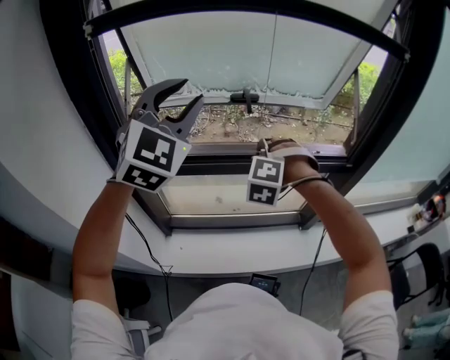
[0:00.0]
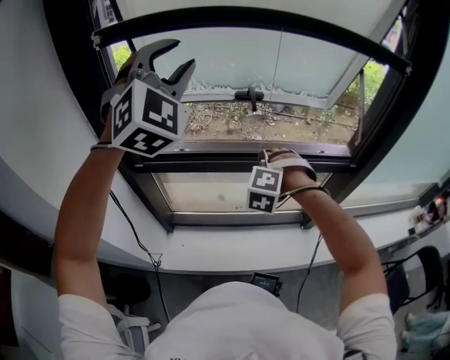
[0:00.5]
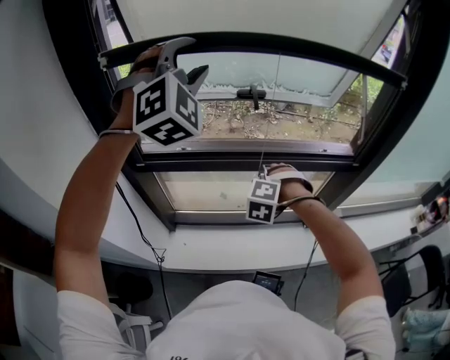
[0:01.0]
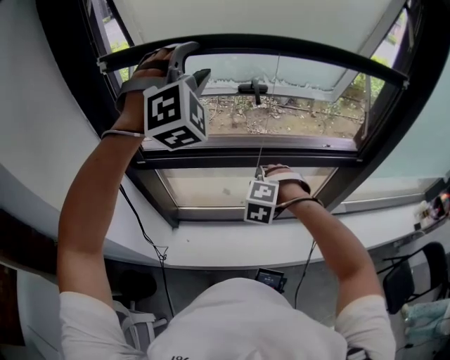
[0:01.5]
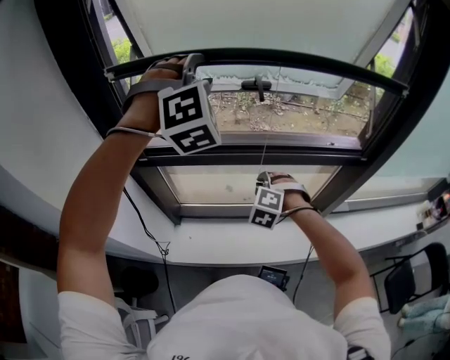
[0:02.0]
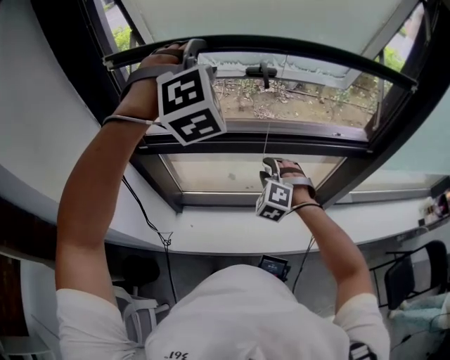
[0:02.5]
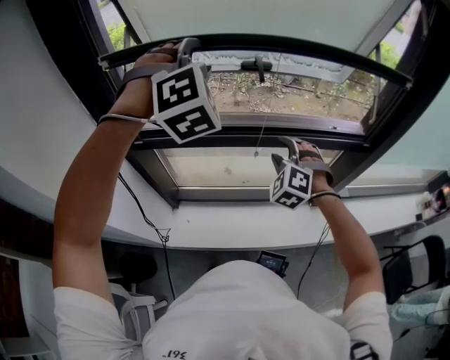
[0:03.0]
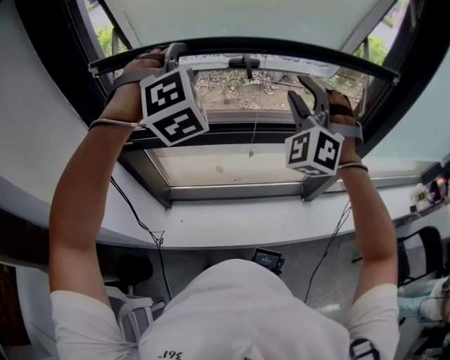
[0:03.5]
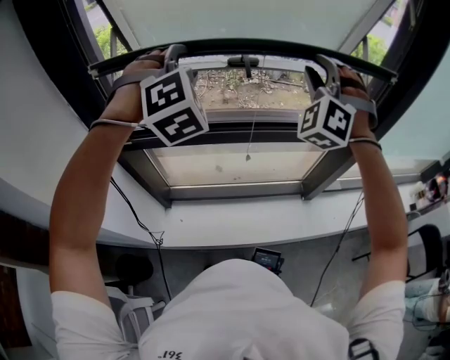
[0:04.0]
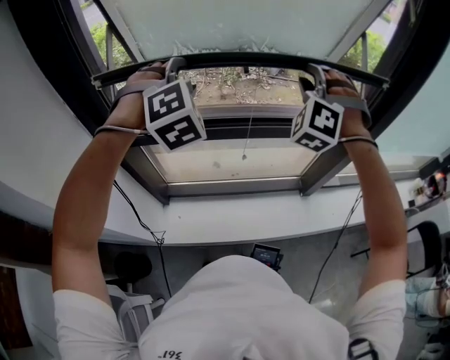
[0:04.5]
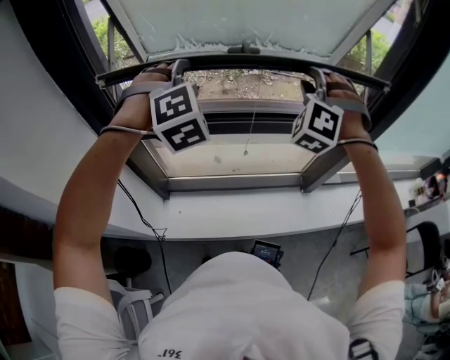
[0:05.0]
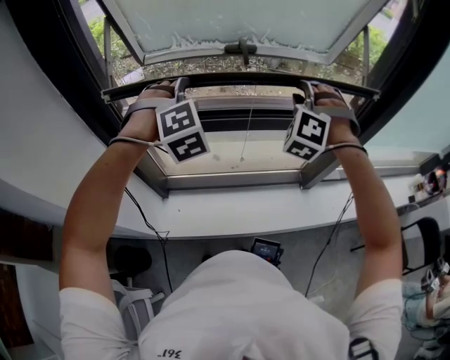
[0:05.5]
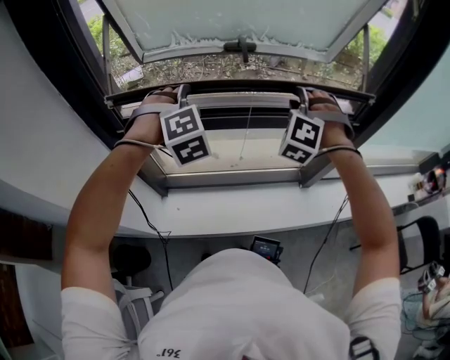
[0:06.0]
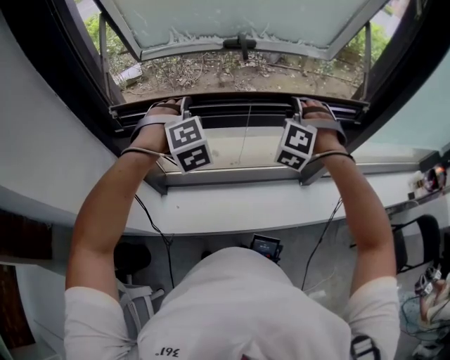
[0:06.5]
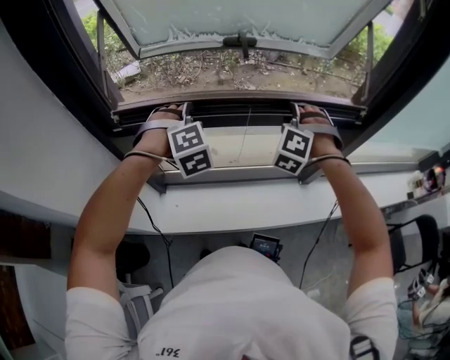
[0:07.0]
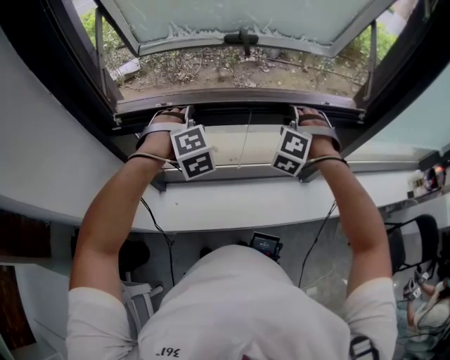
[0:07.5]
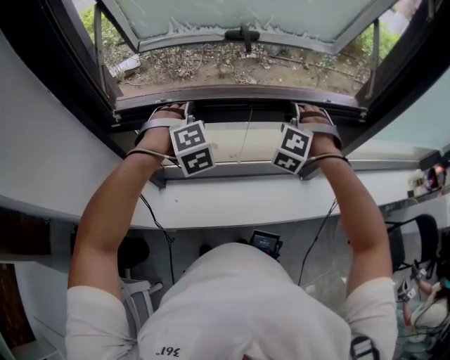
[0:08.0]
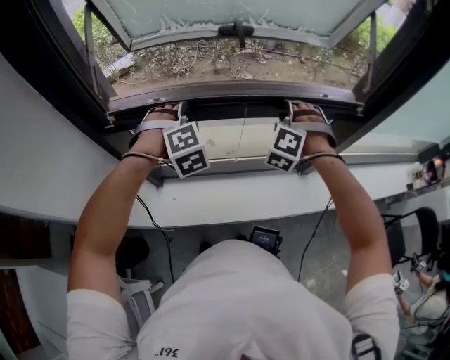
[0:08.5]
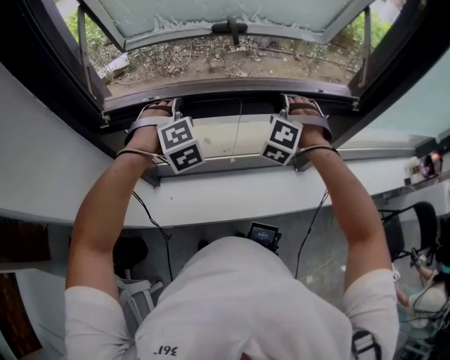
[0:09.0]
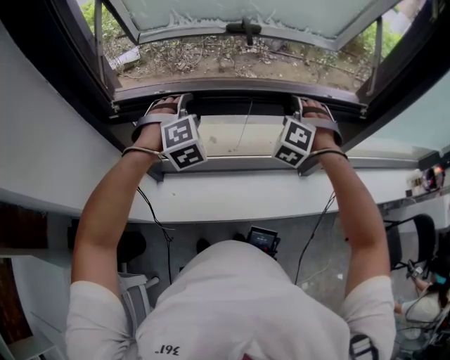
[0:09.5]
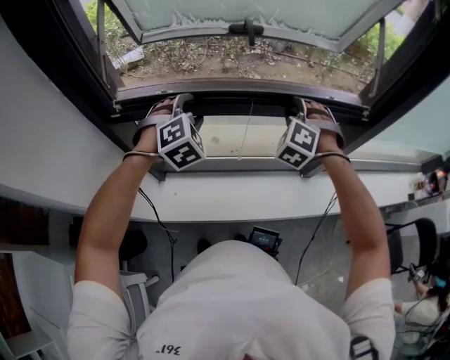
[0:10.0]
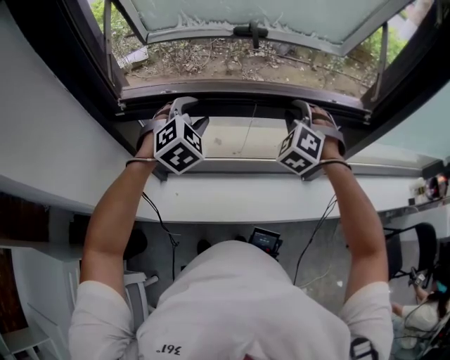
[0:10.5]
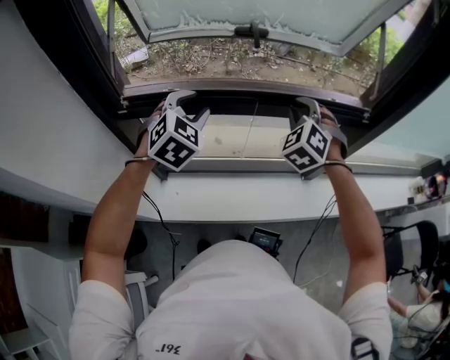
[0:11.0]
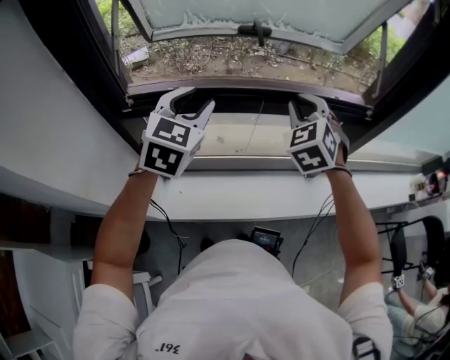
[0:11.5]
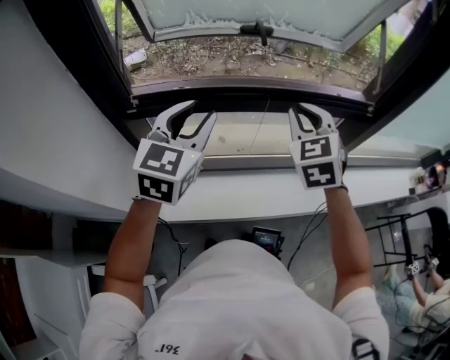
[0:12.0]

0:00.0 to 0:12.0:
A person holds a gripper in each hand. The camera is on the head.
0:00.0 to 0:02.0: The right gripper goes approximately 15 cm downward, while the left gripper travels forward by about 10 cm, and rotates about 40 degrees.
0:02.0 to 0:04.0: The right gripper goes roughly 35 cm upward, and points its fingers approximately 50 degrees further upward.
0:04.0 to 0:06.0: The grippers both shift downward by about 15 cm. The right gripper turns by about 30 degrees.
0:06.0 to 0:08.0: Both grippers travel together downward, some 10 cm.
0:08.0 to 0:10.0: There are only small adjustments of the grippers.
0:10.0 to 0:12.0: The right gripper goes roughly 15 cm backward, upward and to the left, and rotates around the line of its fingers by approximately 40 degrees, clockwise from behind. Meanwhile the left gripper is displaced upward and backward by approximately 15 cm, and twists approximately 40 degrees counterclockwise, seen from behind.

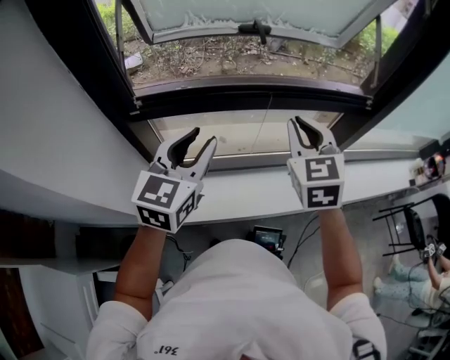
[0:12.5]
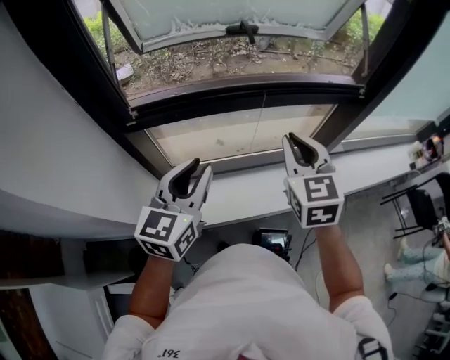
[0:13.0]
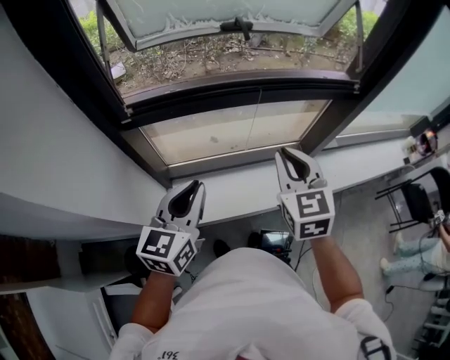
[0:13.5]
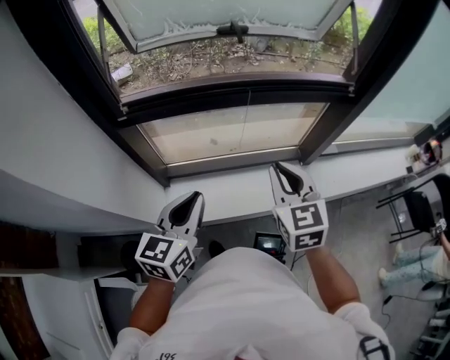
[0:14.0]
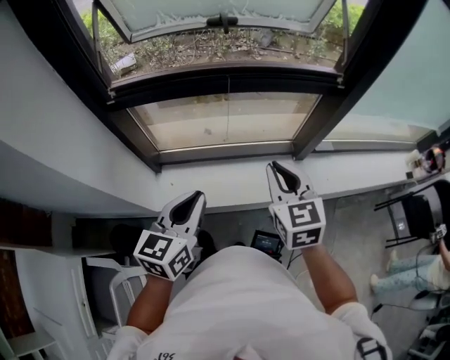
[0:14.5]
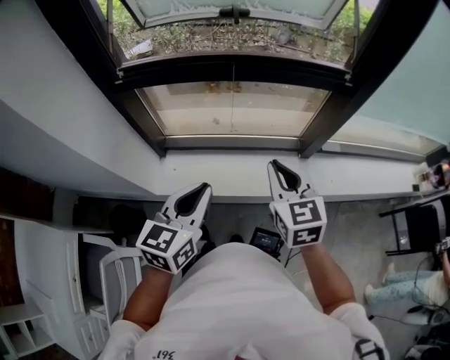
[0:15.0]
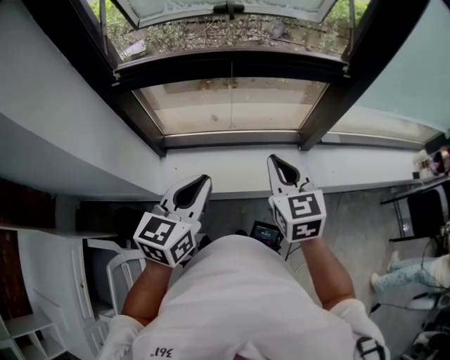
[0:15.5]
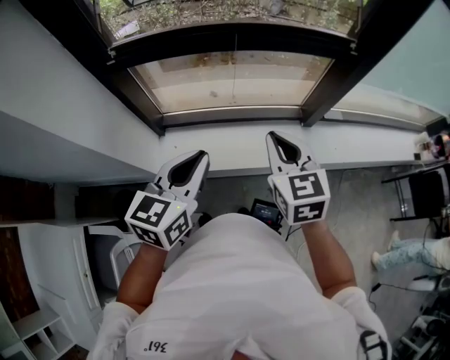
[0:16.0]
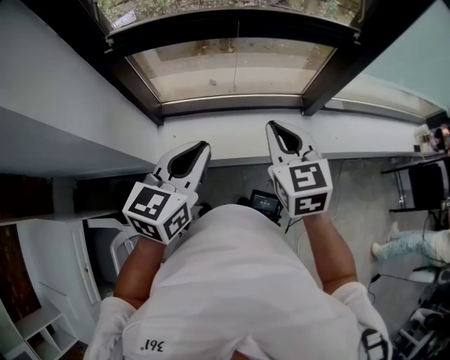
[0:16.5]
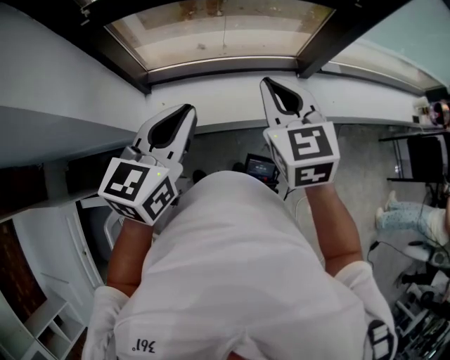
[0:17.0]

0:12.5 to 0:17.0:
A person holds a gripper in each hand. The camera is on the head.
0:12.5 to 0:14.5: The grippers both shift backward, to the right and downward by about 20 cm. The left gripper closes.
0:14.5 to 0:17.0: The right gripper ends up some 5 cm from where it was.

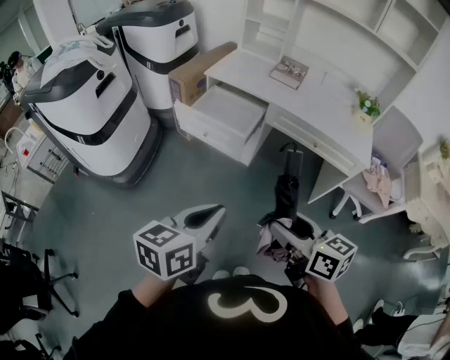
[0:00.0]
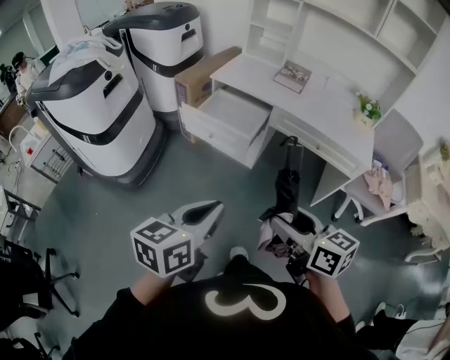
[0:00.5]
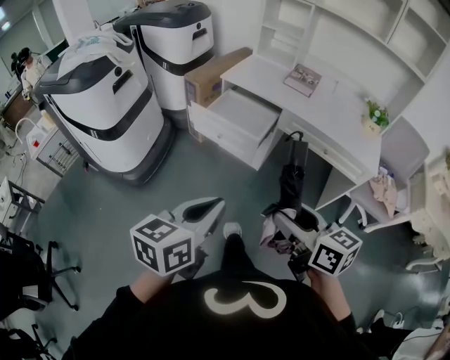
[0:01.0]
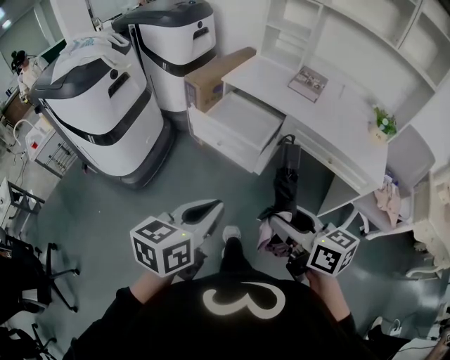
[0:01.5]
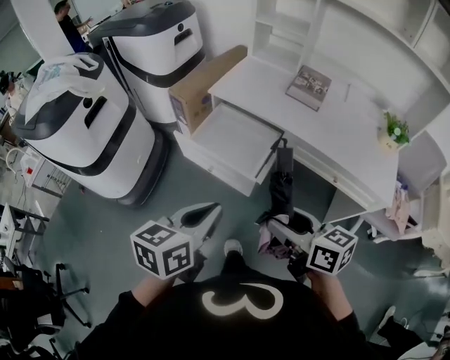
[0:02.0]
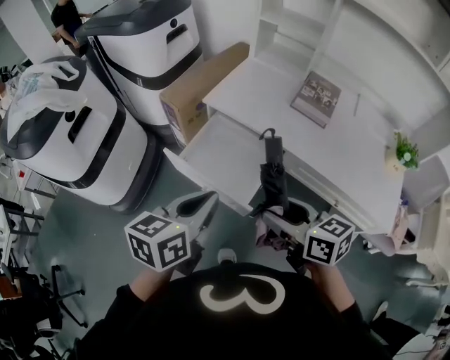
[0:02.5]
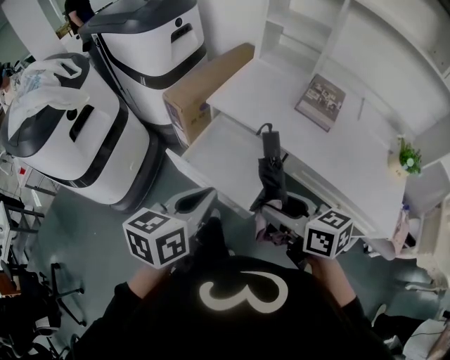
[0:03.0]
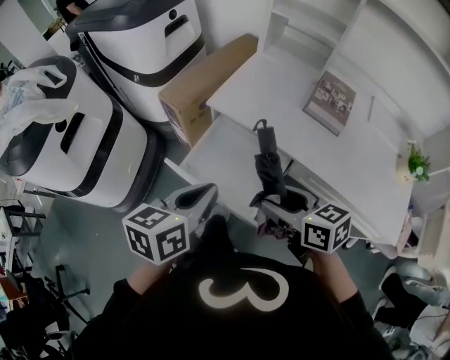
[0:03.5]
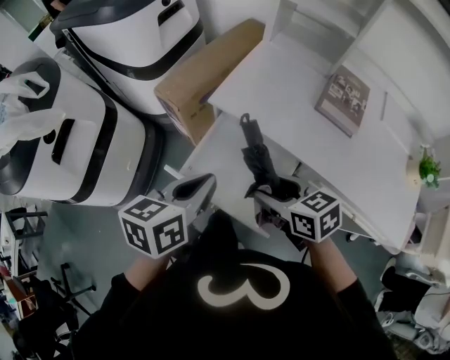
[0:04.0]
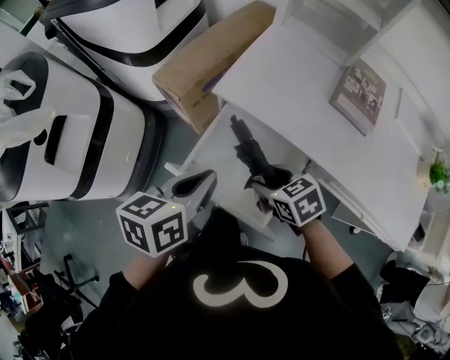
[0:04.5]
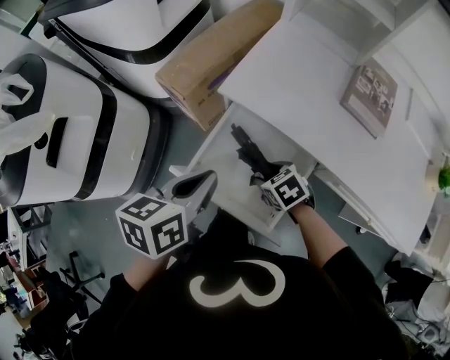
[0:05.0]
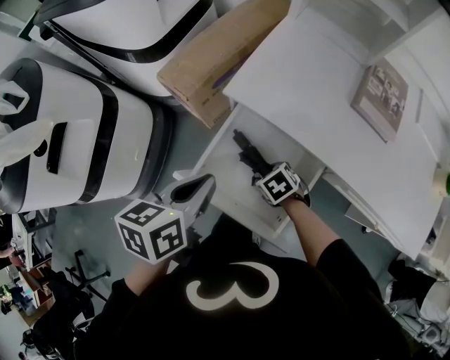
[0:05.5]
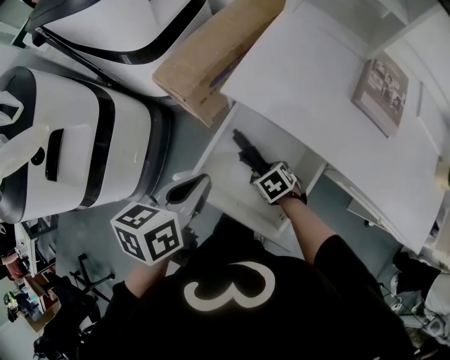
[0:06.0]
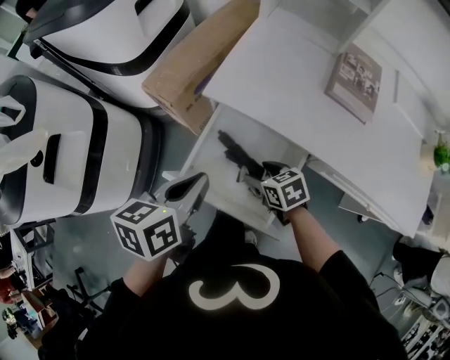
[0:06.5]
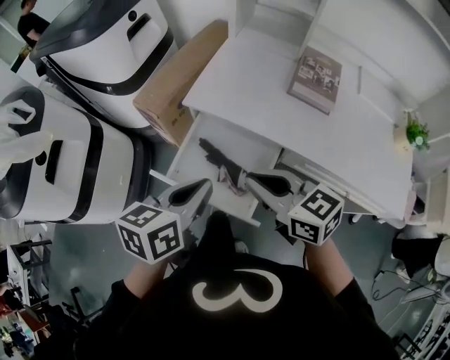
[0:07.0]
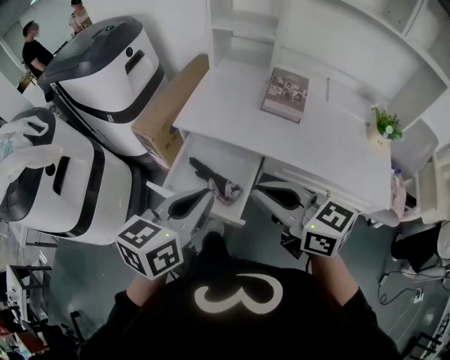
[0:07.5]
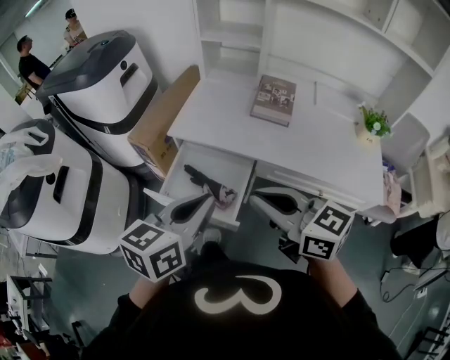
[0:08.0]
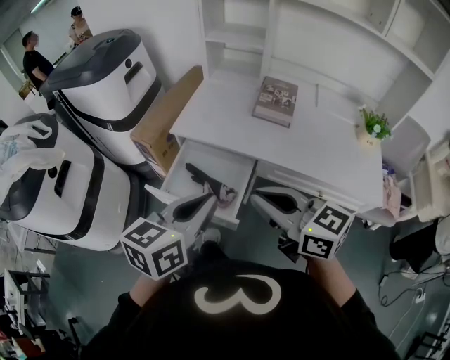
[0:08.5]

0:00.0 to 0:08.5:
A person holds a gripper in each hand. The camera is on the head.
0:00.0 to 0:02.0: Both grippers travel together forward, roughly 25 cm.
0:02.0 to 0:04.0: Both grippers move forward, some 35 cm. The right gripper turns by about 20 degrees.
0:04.0 to 0:06.5: The left gripper travels downward by some 5 cm, while the right gripper shifts about 20 cm downward.
0:06.5 to 0:08.5: The right gripper goes approximately 40 cm upward and backward, points its fingers about 40 degrees further upward, and closes. The left gripper moves backward, upward and to the right, some 30 cm, and turns by roughly 30 degrees.

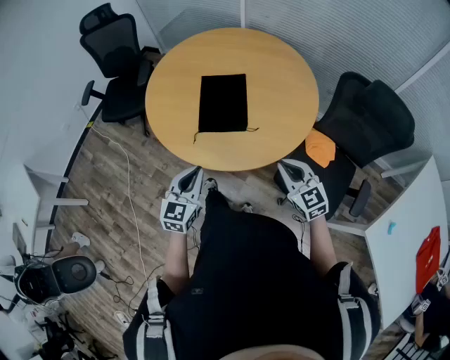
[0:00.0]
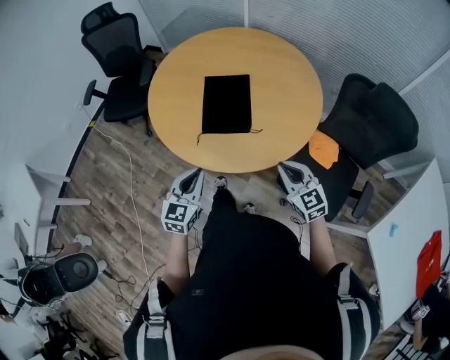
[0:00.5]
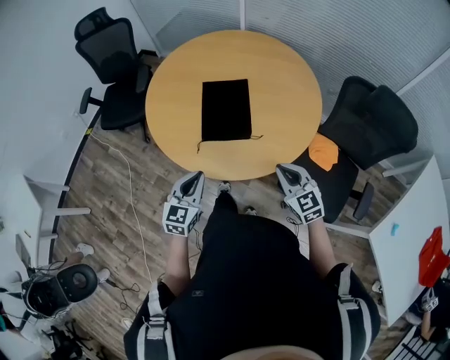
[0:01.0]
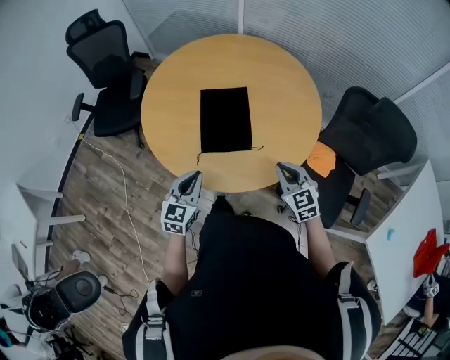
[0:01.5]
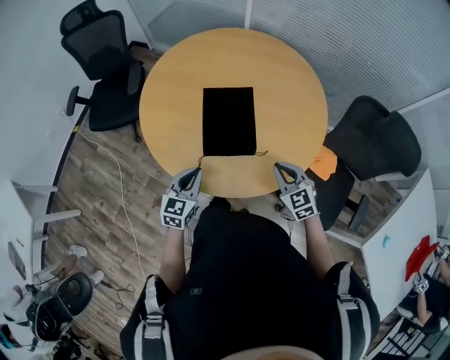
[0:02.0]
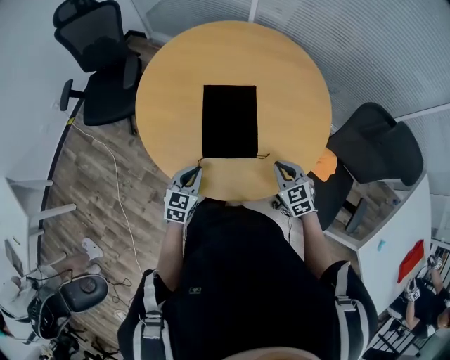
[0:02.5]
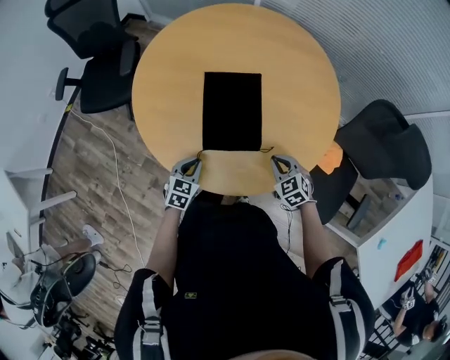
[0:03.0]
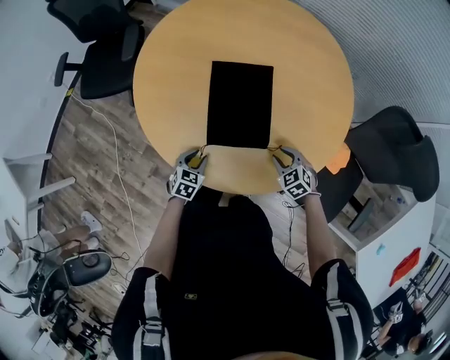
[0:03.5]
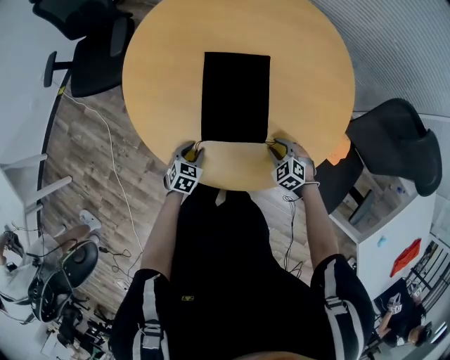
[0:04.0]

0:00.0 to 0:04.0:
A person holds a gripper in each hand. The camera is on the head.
0:00.0 to 0:02.0: Both grippers move forward and downward, some 15 cm.
0:02.0 to 0:04.0: The grippers both shift downward by roughly 25 cm. The left gripper angles its fingers downward, by about 30 degrees, and opens up, while the right gripper swivels roughly 30 degrees, and opens.
